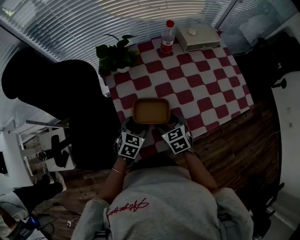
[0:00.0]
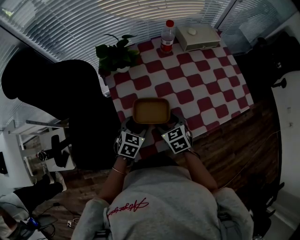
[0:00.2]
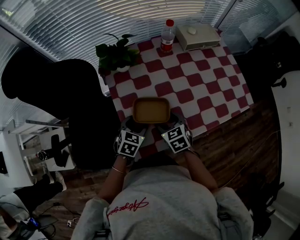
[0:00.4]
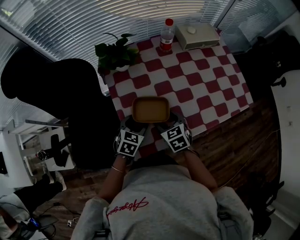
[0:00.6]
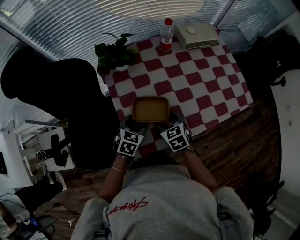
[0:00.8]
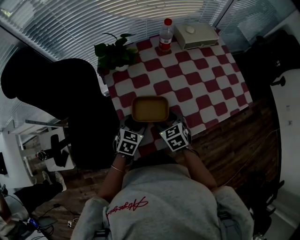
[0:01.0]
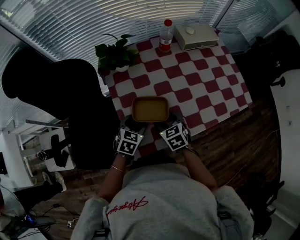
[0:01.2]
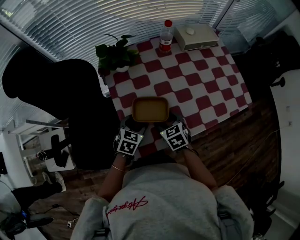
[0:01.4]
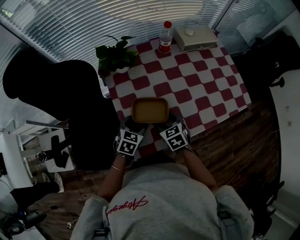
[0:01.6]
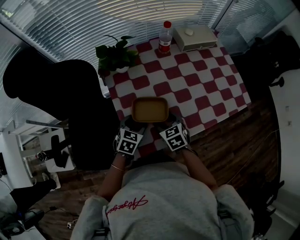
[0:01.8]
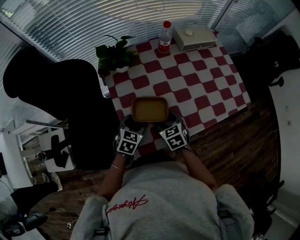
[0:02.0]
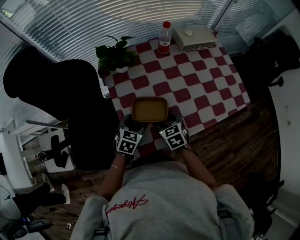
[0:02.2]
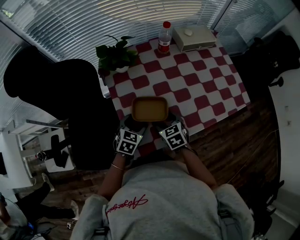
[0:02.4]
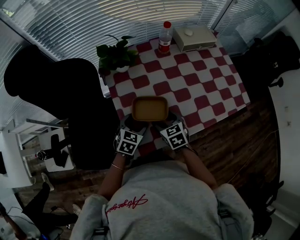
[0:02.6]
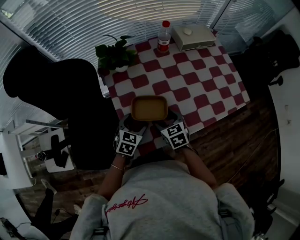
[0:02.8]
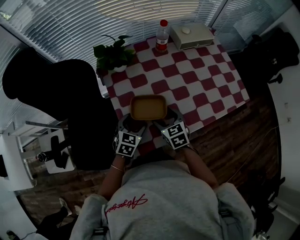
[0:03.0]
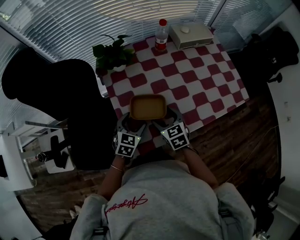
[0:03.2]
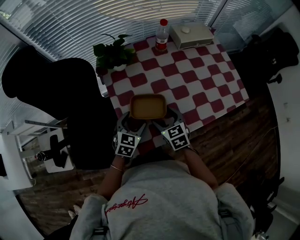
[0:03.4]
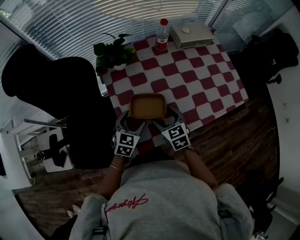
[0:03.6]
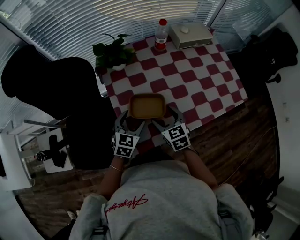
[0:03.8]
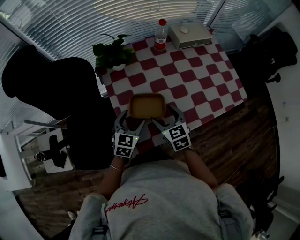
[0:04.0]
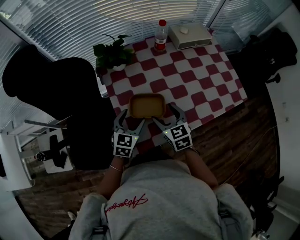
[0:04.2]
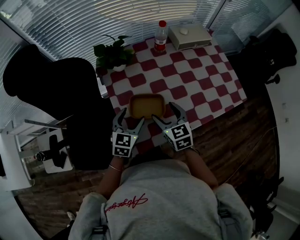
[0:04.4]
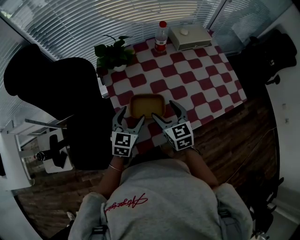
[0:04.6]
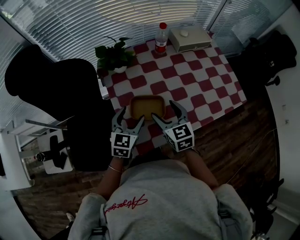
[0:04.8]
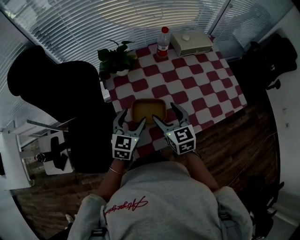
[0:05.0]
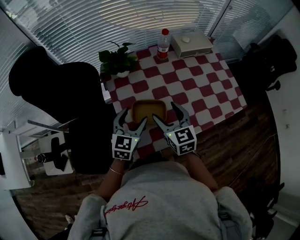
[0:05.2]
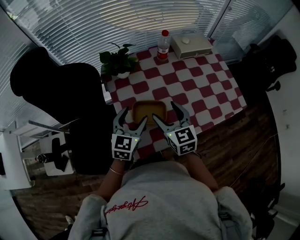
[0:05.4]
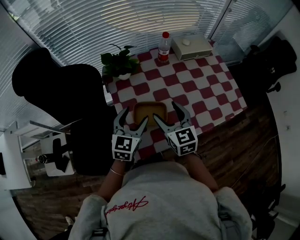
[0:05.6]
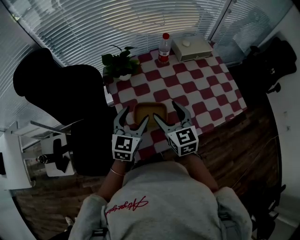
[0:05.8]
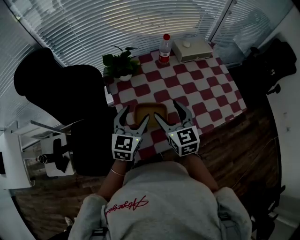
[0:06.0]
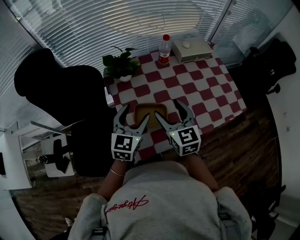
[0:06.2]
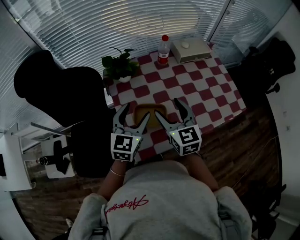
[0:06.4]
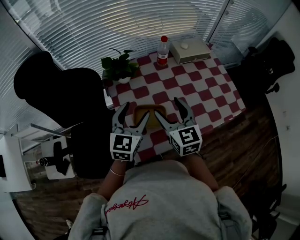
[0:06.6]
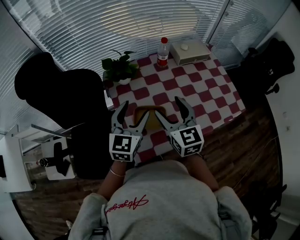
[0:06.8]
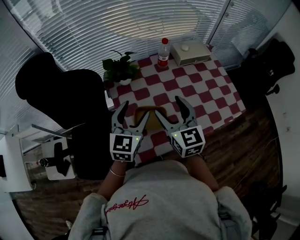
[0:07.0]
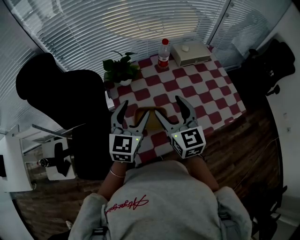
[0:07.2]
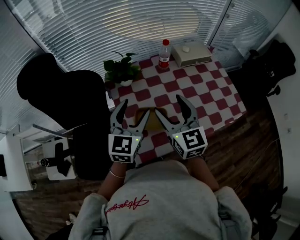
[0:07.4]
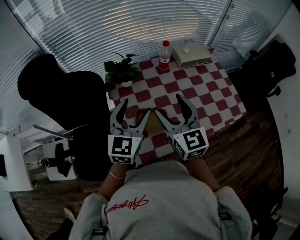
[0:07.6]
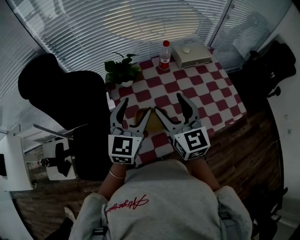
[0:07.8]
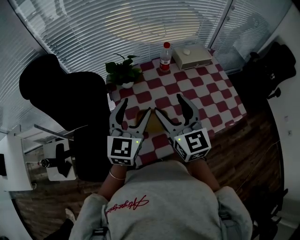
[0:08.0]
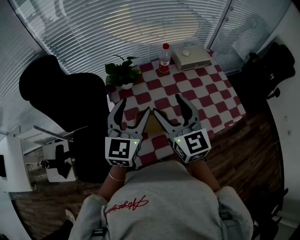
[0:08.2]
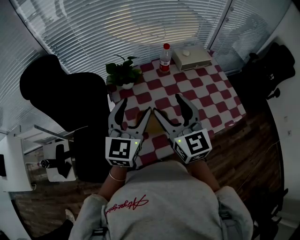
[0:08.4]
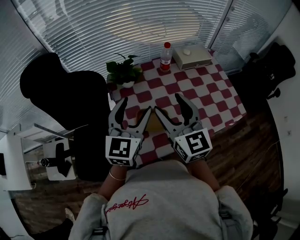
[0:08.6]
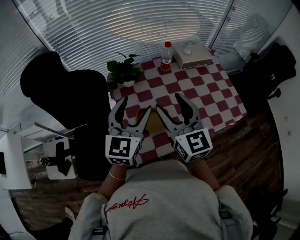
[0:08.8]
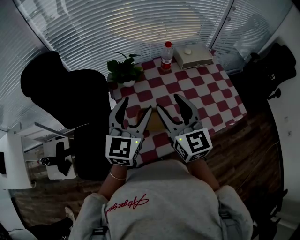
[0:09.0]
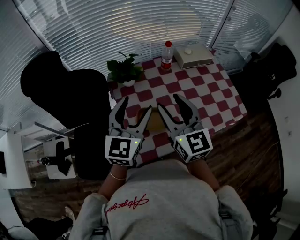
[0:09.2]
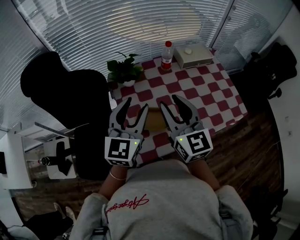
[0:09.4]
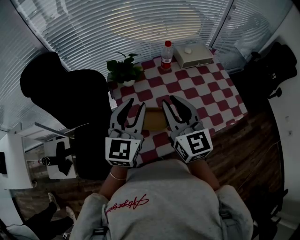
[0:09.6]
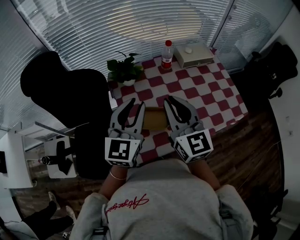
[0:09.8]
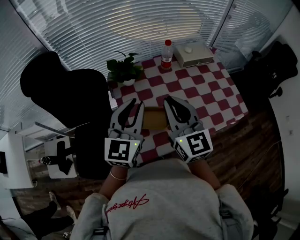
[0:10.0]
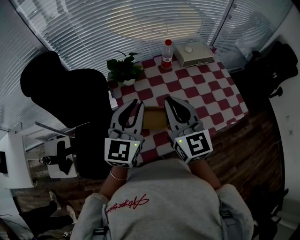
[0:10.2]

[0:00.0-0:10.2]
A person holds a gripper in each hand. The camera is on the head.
0:00.0 to 0:01.4: Both grippers stay put.
0:01.4 to 0:03.0: There are only small adjustments of the grippers.
0:03.0 to 0:04.4: Both grippers travel together upward, approximately 5 cm.
0:04.4 to 0:05.8: Both grippers move upward, roughly 10 cm.
0:05.8 to 0:07.2: The grippers both shift upward by approximately 5 cm.
0:07.2 to 0:08.8: Both grippers move upward, approximately 5 cm.
0:08.8 to 0:10.2: The right gripper closes up; the left gripper closes.

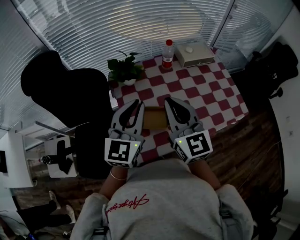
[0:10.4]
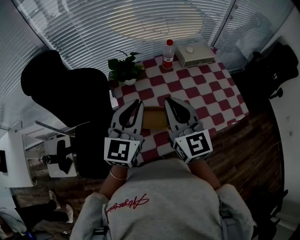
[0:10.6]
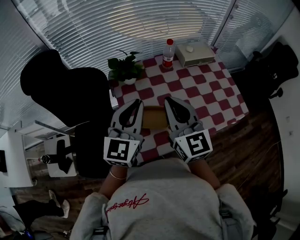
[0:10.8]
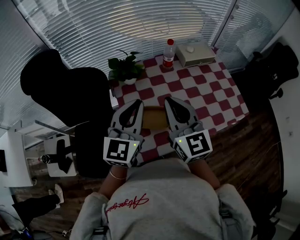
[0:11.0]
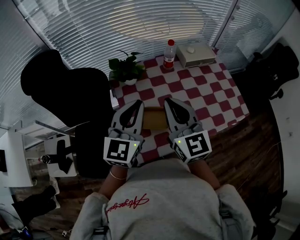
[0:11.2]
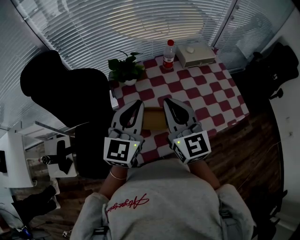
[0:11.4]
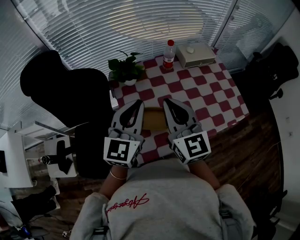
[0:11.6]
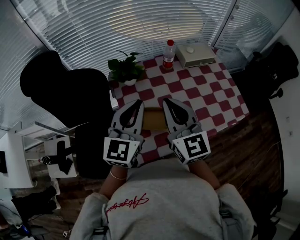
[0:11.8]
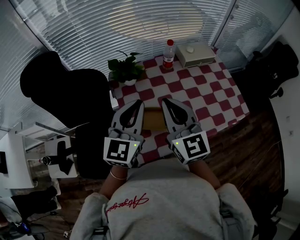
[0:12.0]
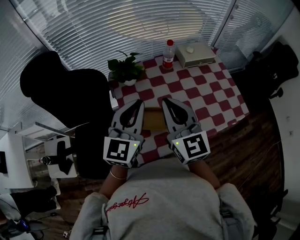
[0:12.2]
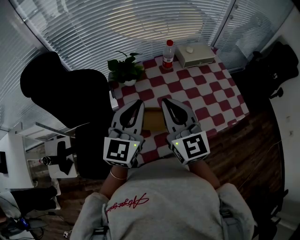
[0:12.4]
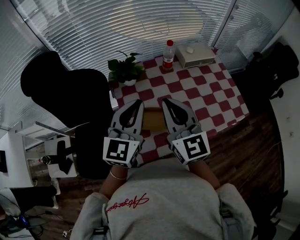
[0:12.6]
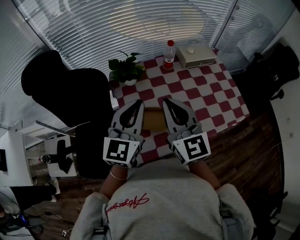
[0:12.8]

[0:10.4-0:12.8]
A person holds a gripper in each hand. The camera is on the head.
0:10.4 to 0:11.6: Both grippers stay put.
0:11.6 to 0:12.8: Both grippers stay about where they are.

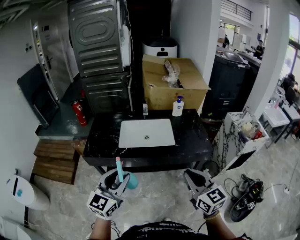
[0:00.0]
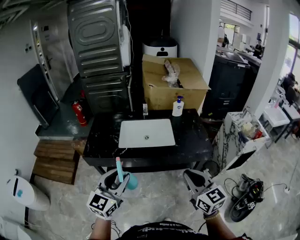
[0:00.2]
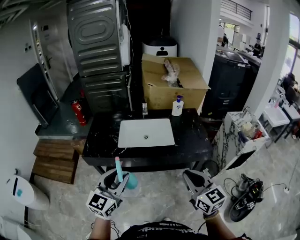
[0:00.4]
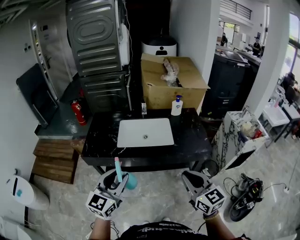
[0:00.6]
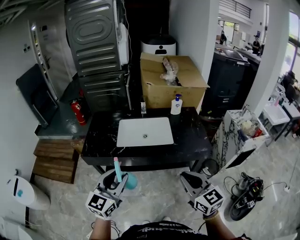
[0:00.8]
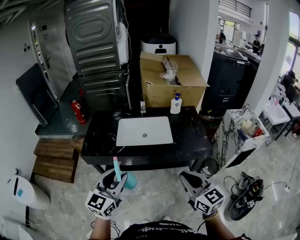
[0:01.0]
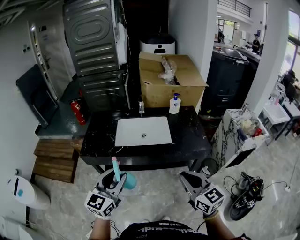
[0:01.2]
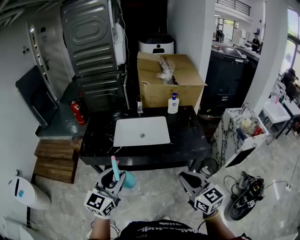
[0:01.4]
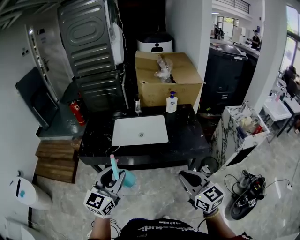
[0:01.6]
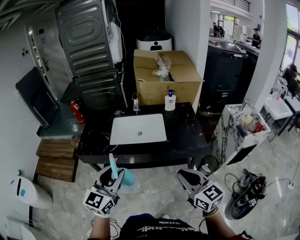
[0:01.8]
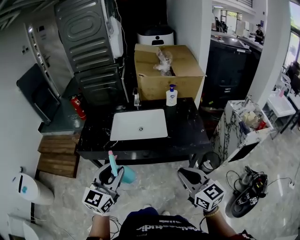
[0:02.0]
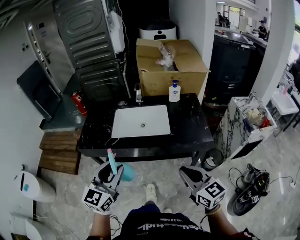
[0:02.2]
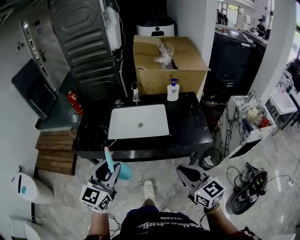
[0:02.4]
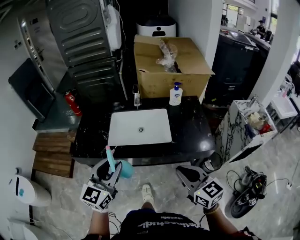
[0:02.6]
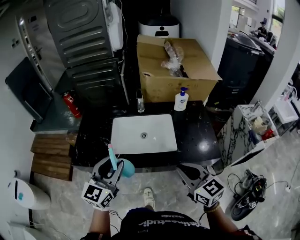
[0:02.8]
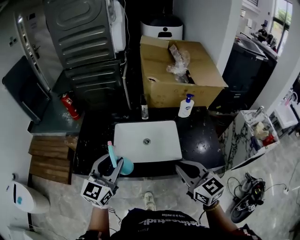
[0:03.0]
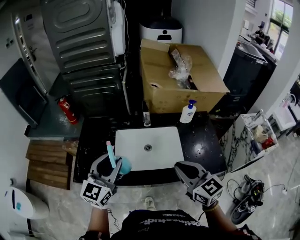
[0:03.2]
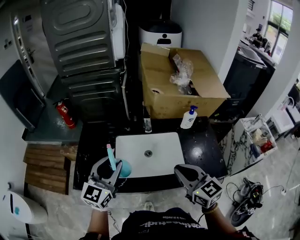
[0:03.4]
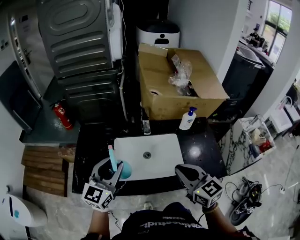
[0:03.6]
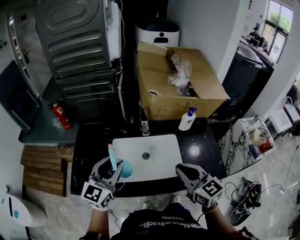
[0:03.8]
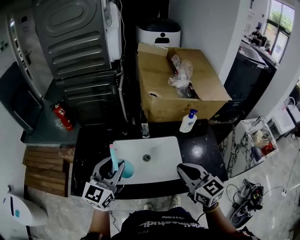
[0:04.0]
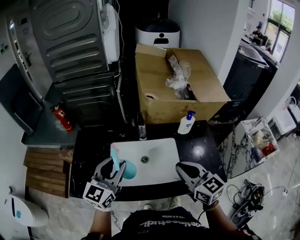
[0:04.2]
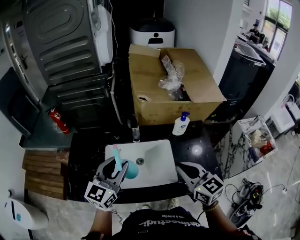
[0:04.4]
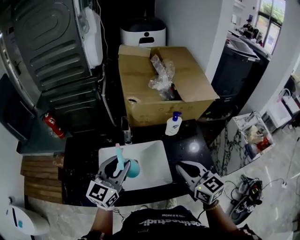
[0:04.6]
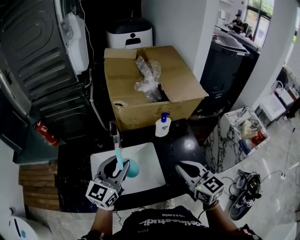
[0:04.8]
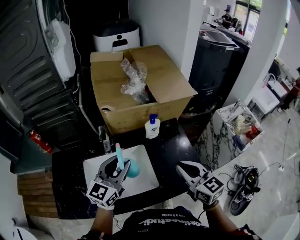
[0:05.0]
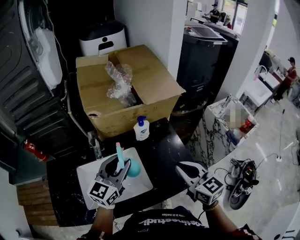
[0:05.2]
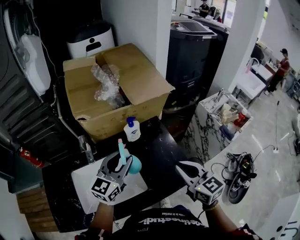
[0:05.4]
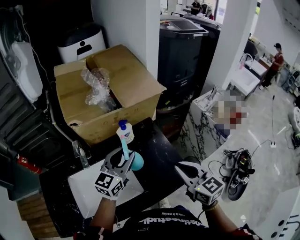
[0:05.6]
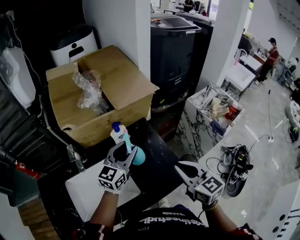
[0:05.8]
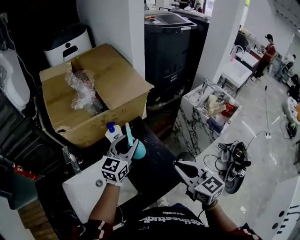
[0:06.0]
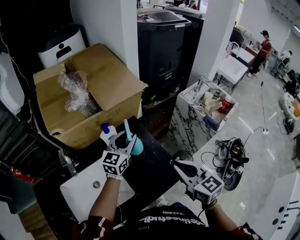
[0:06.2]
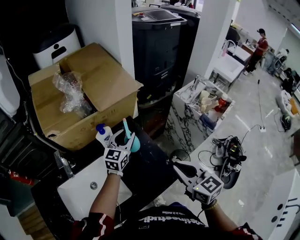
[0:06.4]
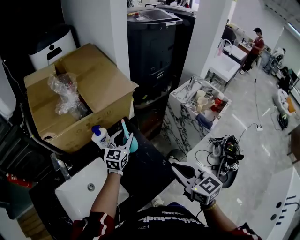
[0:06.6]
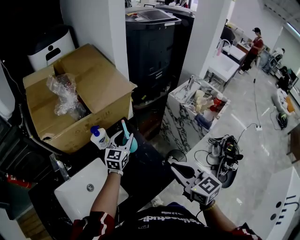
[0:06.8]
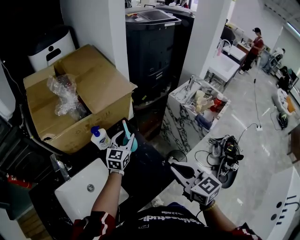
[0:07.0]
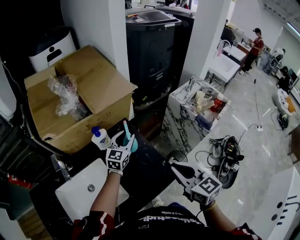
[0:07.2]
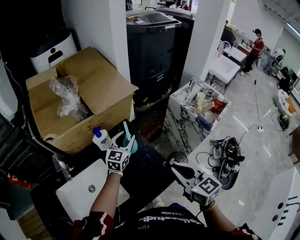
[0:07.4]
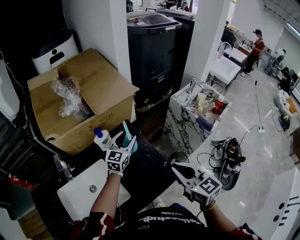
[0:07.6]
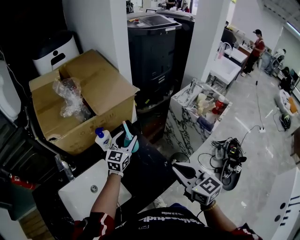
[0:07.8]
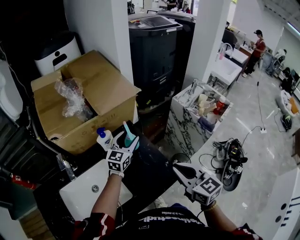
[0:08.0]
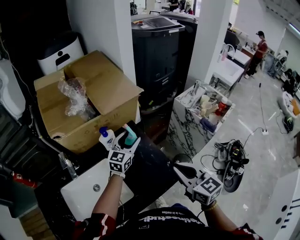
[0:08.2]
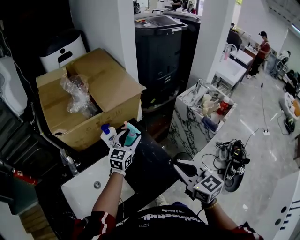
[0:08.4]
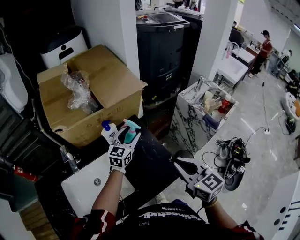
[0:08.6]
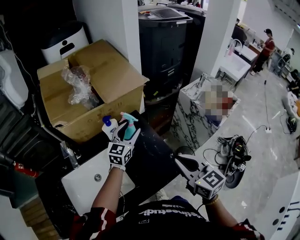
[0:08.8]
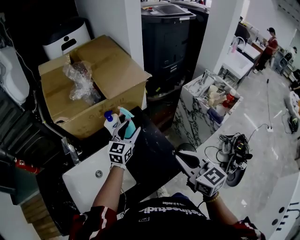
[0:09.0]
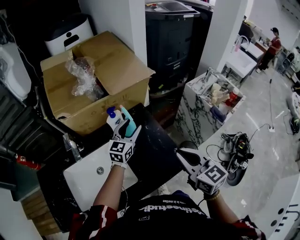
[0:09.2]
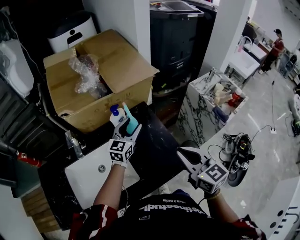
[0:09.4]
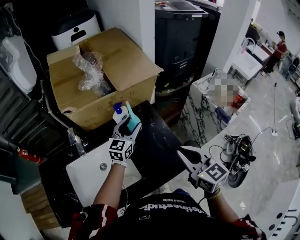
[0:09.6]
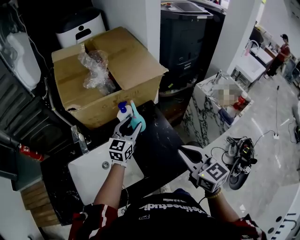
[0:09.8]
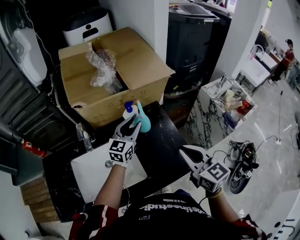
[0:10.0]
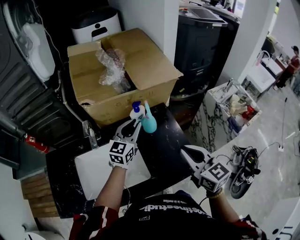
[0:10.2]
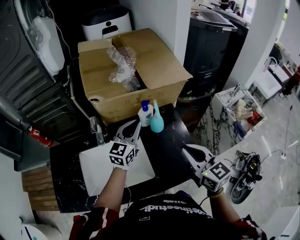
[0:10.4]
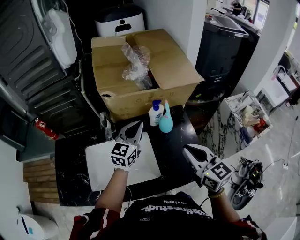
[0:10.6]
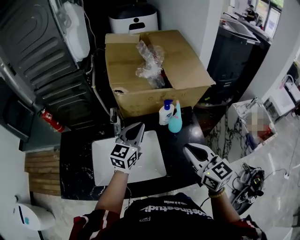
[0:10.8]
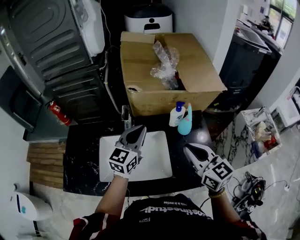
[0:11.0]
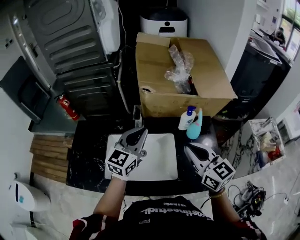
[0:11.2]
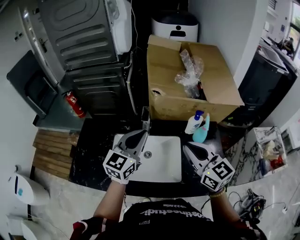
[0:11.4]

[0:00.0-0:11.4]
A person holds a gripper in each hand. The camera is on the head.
0:00.0 to 0:01.4: There are only small adjustments of the grippers.
0:01.4 to 0:02.8: The grippers both shift forward by approximately 20 cm.
0:02.8 to 0:04.2: Both grippers move forward, approximately 20 cm.
0:04.2 to 0:05.6: The right gripper moves approximately 25 cm, and turns by about 20 degrees. The left gripper changes place by some 40 cm, and turns by about 30 degrees.
0:05.6 to 0:07.2: The right gripper is displaced to the right by roughly 10 cm, while the left gripper is displaced forward, to the right and downward by approximately 25 cm.
0:07.2 to 0:08.6: The left gripper opens up.
0:08.6 to 0:10.0: The right gripper goes roughly 5 cm to the left; the left gripper goes about 10 cm to the left, and closes.
0:10.0 to 0:11.4: The right gripper moves to the left, some 25 cm, and rotates about 30 degrees, while the left gripper goes some 30 cm to the left and backward, rotates about 20 degrees, and closes up.
